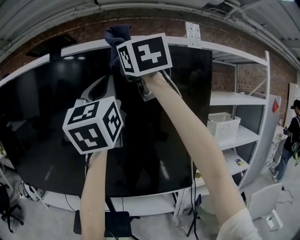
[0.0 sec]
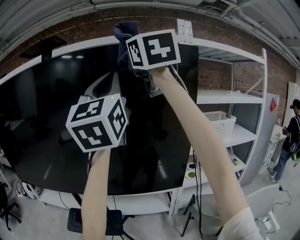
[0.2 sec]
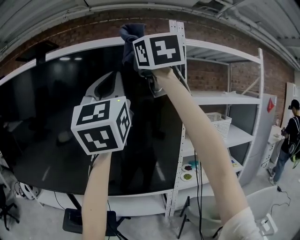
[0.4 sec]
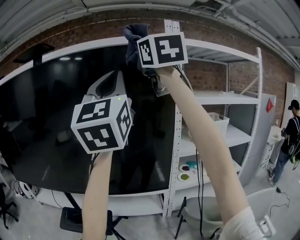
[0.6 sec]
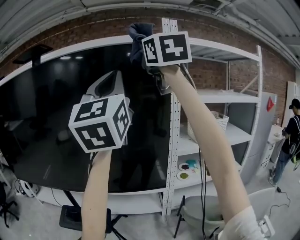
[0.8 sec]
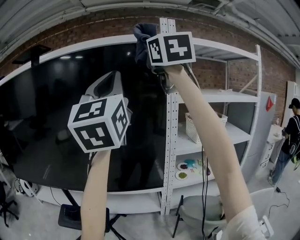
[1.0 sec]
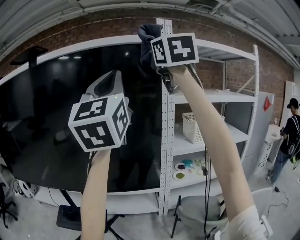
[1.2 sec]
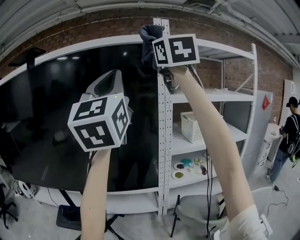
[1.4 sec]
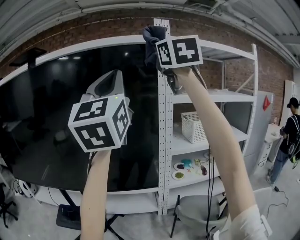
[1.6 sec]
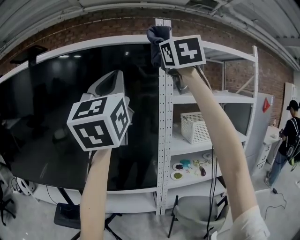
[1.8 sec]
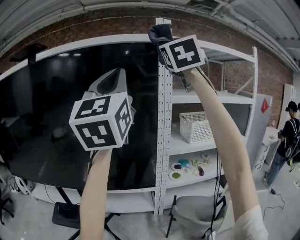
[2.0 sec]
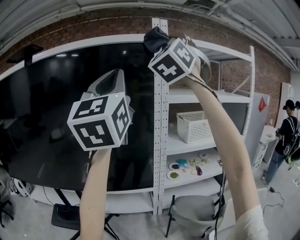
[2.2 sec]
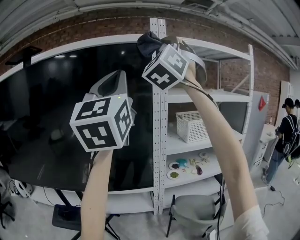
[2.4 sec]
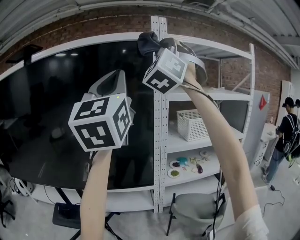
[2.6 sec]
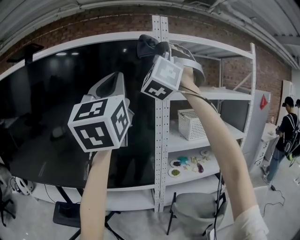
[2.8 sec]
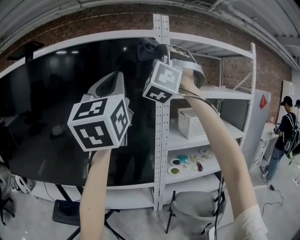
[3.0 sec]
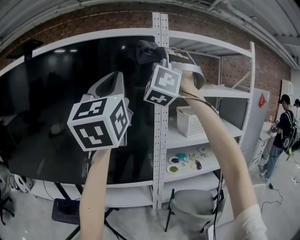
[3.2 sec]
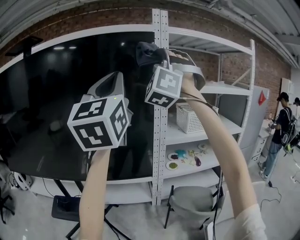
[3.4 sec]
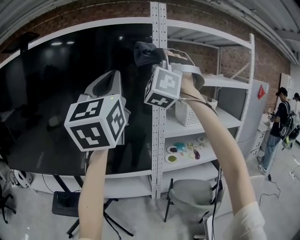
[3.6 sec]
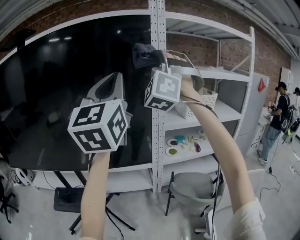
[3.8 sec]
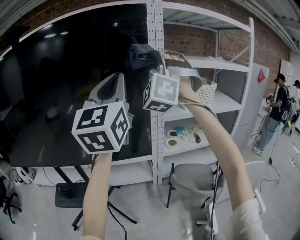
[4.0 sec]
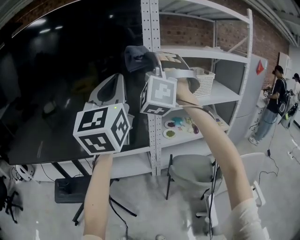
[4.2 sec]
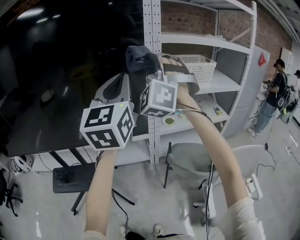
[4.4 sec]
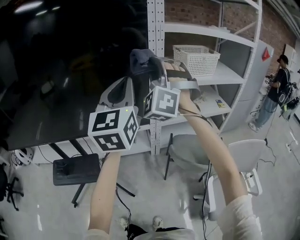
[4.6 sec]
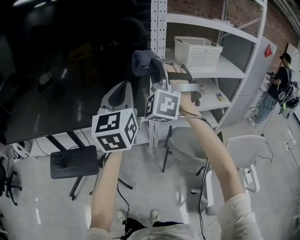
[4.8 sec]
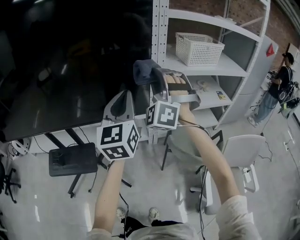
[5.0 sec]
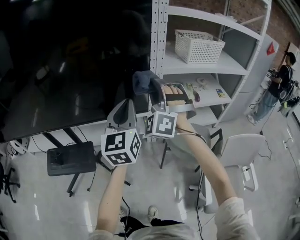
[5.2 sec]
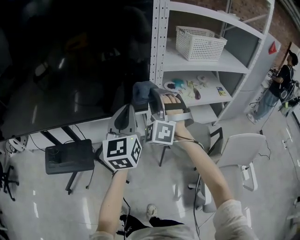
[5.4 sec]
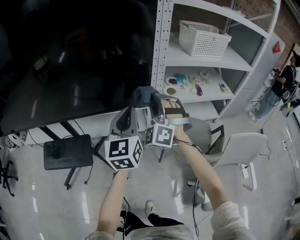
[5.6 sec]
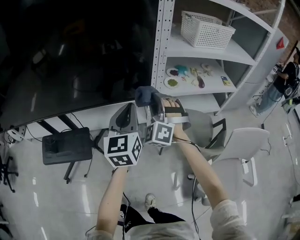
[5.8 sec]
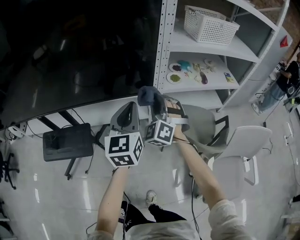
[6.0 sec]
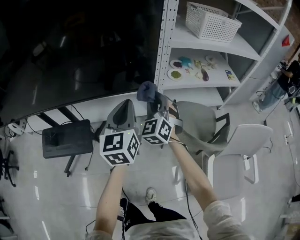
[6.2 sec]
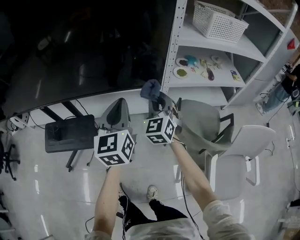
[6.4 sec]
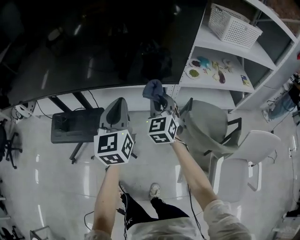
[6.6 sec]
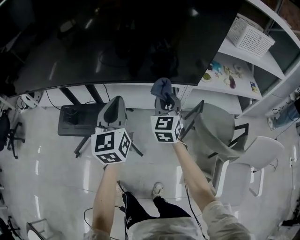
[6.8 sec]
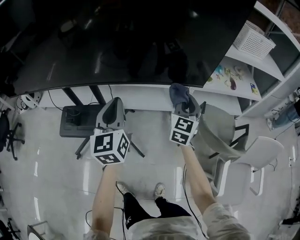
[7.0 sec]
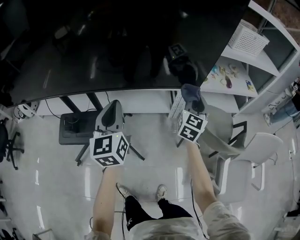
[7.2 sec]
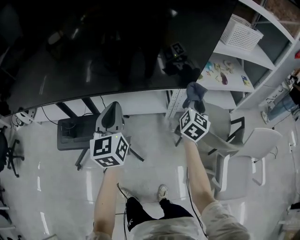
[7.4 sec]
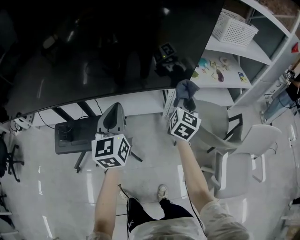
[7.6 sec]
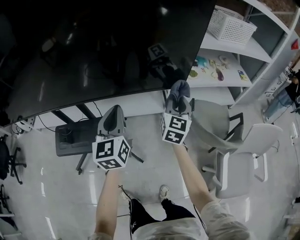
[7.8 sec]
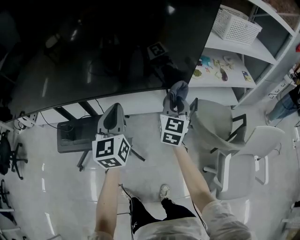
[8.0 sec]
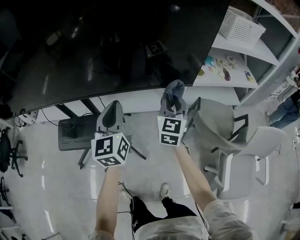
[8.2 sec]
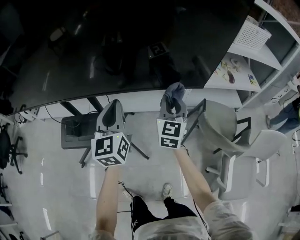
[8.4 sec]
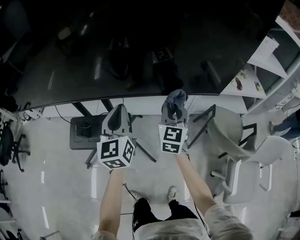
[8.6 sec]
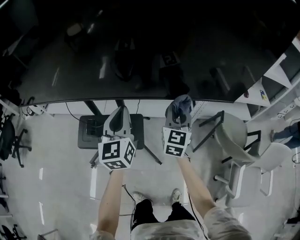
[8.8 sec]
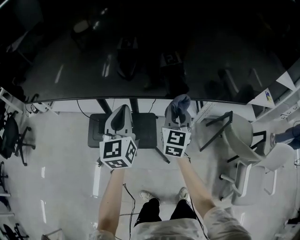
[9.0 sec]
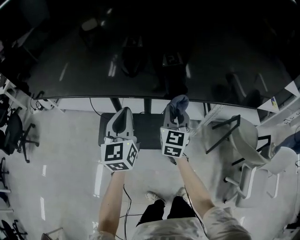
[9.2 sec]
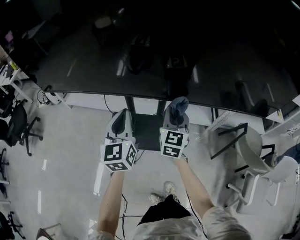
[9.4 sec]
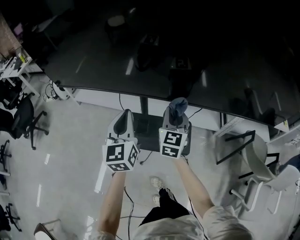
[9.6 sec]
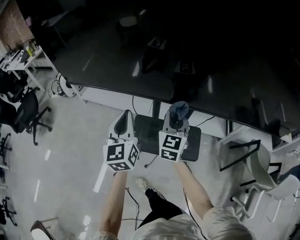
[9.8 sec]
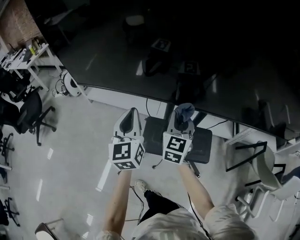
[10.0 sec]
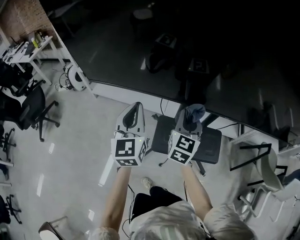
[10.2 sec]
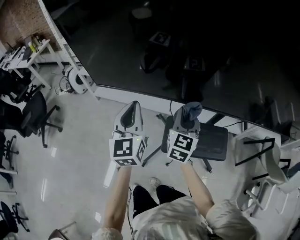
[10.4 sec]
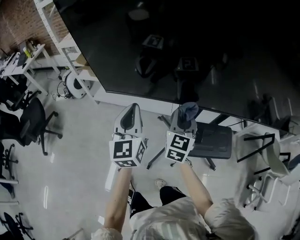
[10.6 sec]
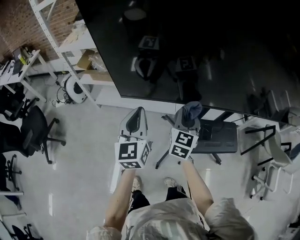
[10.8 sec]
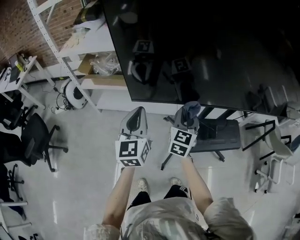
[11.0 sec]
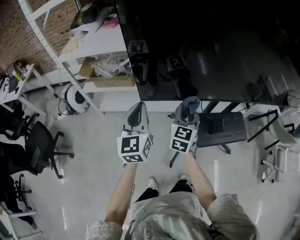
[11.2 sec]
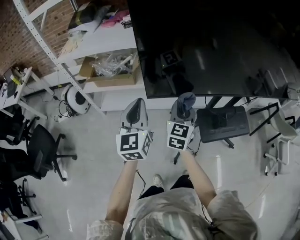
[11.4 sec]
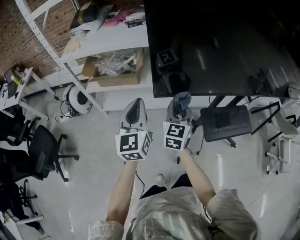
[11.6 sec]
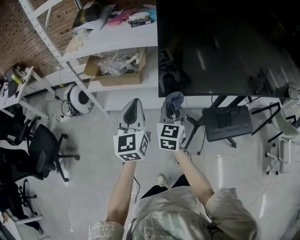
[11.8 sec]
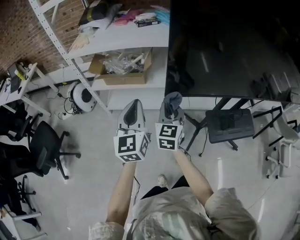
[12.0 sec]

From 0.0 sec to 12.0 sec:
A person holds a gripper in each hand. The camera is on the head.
From 0.0 sec to 1.6 sec: Both grippers move to the right, approximately 25 cm.
From 1.6 sec to 3.0 sec: The right gripper rolls counterclockwise, seen from behind, by roughly 70 degrees.
From 3.0 sec to 4.4 sec: The two grippers go roughly 25 cm downward.
From 4.4 sec to 6.0 sec: Both grippers move downward, about 35 cm. The right gripper swivels roughly 30 degrees, while the left gripper turns by some 20 degrees.
From 6.0 sec to 7.6 sec: The right gripper moves roughly 15 cm to the left and comes back, and twists roughly 70 degrees clockwise, seen from behind. Meanwhile the left gripper heads to the left, covering about 20 cm.
From 7.6 sec to 9.0 sec: Both grippers move to the left, roughly 35 cm. The right gripper turns by roughly 30 degrees.
From 9.0 sec to 10.4 sec: The two grippers travel together, to the left, some 50 cm.
From 10.4 sec to 12.0 sec: Both grippers travel together to the left, roughly 35 cm.

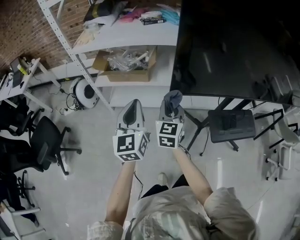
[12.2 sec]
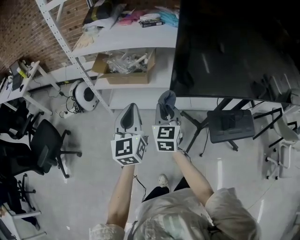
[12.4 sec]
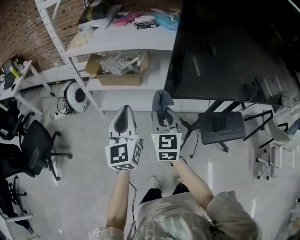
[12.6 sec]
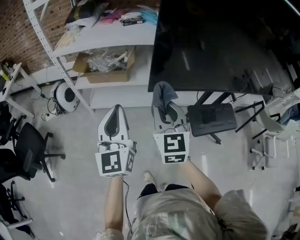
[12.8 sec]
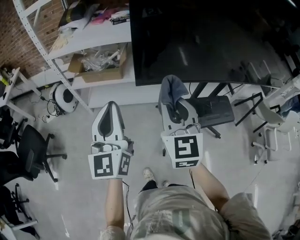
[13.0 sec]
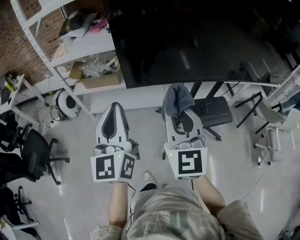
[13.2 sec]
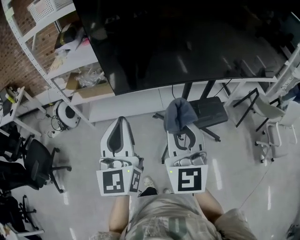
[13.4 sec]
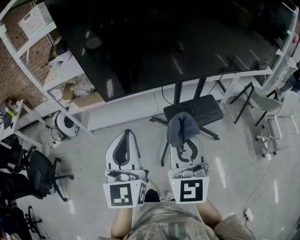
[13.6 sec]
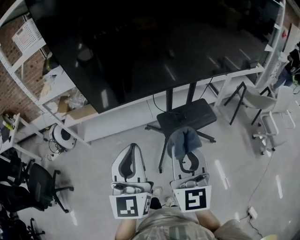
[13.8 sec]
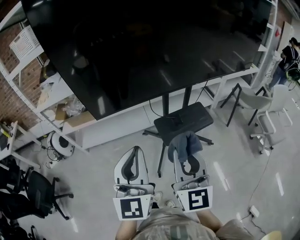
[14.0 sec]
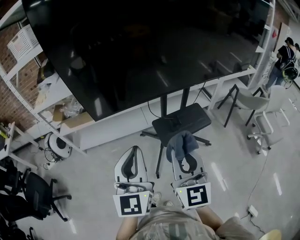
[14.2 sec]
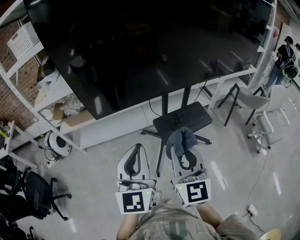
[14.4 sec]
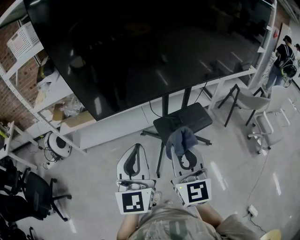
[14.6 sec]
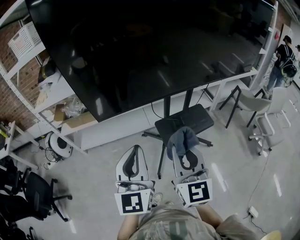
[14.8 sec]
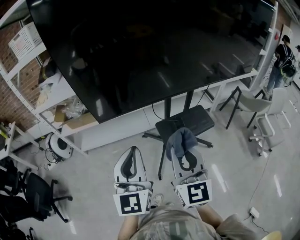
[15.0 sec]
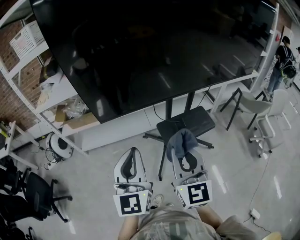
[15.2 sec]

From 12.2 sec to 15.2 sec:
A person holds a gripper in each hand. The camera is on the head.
From 12.2 sec to 13.8 sec: The right gripper goes approximately 50 cm backward, to the right and upward, and rotates some 20 degrees. The left gripper heads to the right, backward and upward, covering roughly 40 cm, and swivels roughly 20 degrees.
From 13.8 sec to 15.2 sec: The left gripper moves about 5 cm.

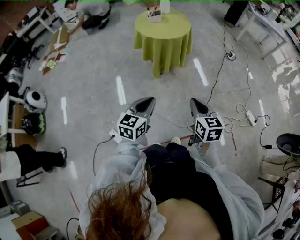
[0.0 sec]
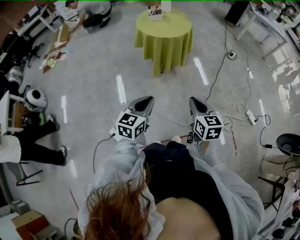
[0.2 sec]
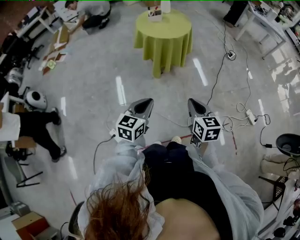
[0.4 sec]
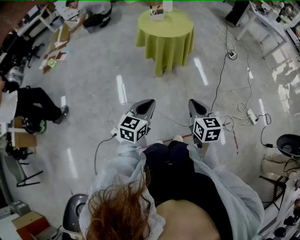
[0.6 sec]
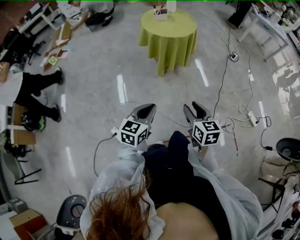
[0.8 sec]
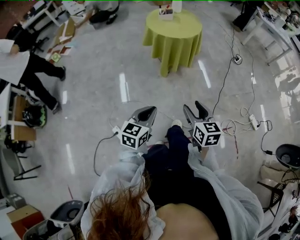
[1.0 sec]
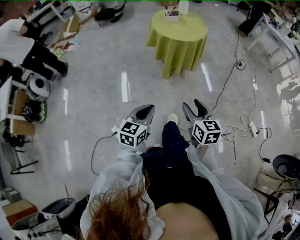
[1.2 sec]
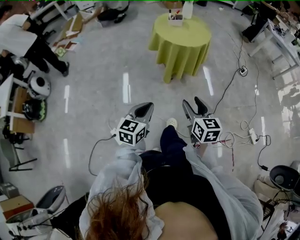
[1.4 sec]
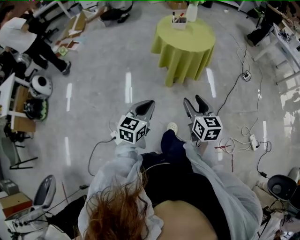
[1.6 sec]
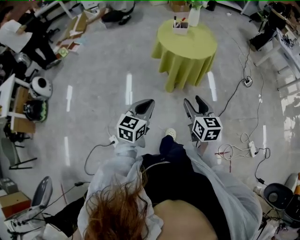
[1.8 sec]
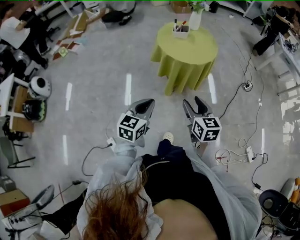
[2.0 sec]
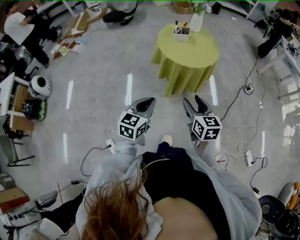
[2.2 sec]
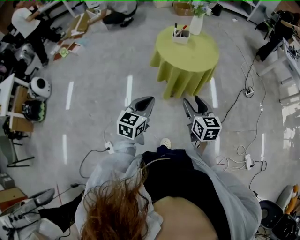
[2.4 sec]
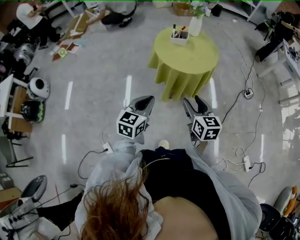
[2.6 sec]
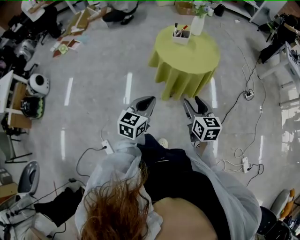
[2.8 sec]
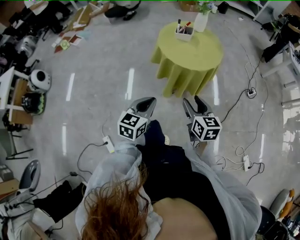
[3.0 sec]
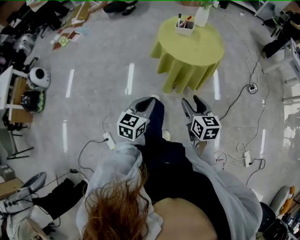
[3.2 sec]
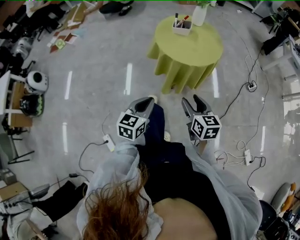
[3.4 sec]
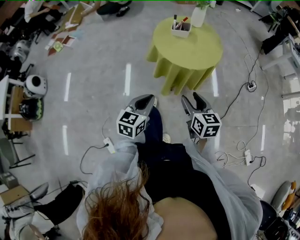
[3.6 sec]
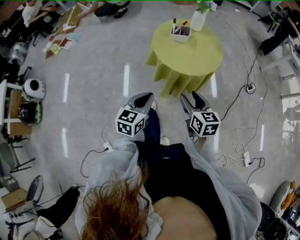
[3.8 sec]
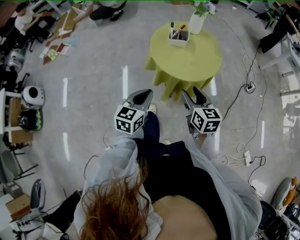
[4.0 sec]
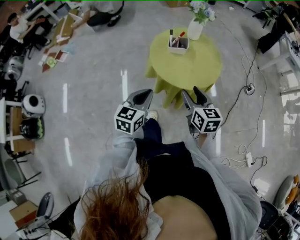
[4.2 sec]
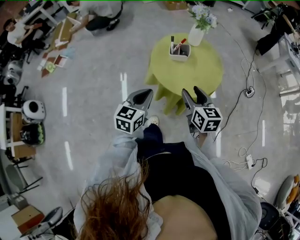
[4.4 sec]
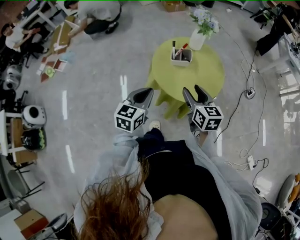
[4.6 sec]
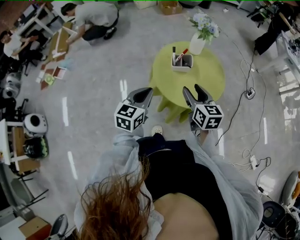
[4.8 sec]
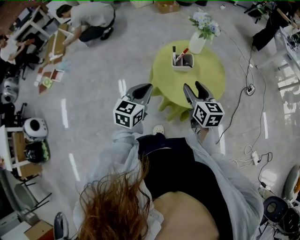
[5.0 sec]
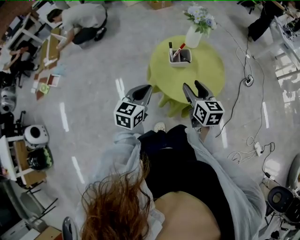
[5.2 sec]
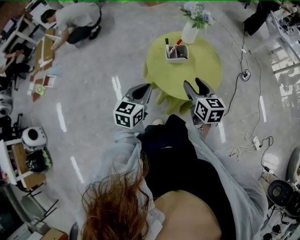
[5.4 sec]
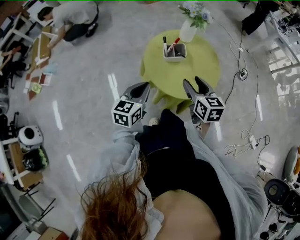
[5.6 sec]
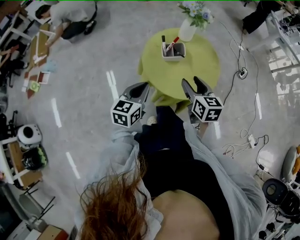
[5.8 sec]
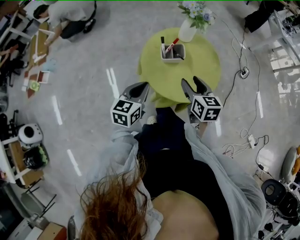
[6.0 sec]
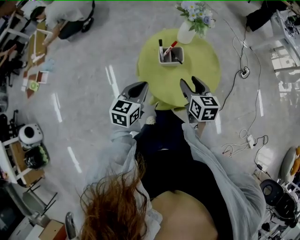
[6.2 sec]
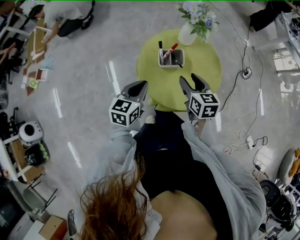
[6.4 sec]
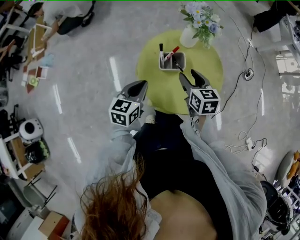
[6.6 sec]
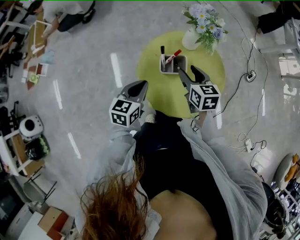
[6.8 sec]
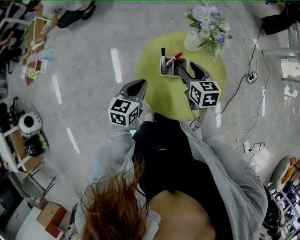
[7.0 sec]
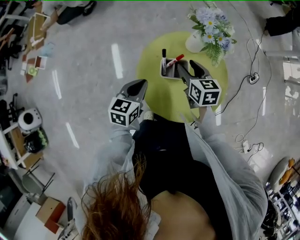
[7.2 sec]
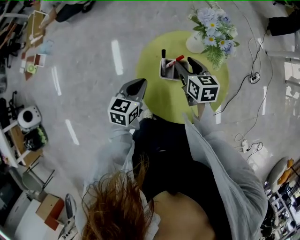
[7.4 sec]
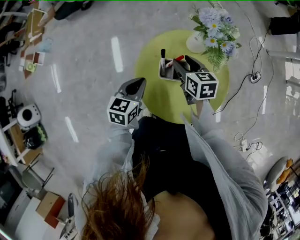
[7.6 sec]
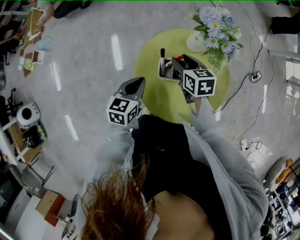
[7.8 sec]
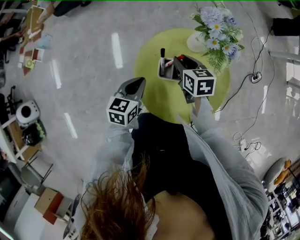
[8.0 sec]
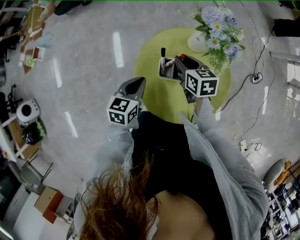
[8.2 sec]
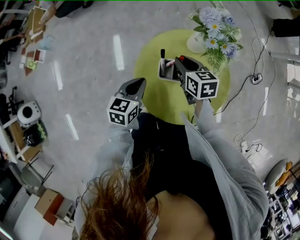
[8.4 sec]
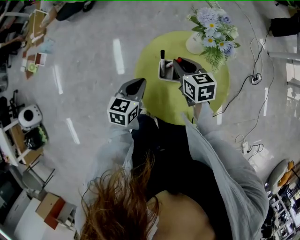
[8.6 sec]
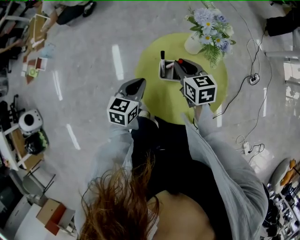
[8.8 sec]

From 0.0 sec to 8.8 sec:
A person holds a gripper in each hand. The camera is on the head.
From 0.0 sec to 1.4 sec: The left gripper goes roughly 5 cm to the left. The right gripper goes roughly 10 cm to the left and forward, and opens.
From 1.4 sec to 3.0 sec: Both grippers move forward, about 20 cm.
From 3.0 sec to 4.4 sec: Both grippers move forward, roughly 25 cm.
From 4.4 sec to 5.8 sec: Both grippers move forward, approximately 10 cm.
From 5.8 sec to 7.4 sec: The right gripper travels forward by roughly 20 cm, while the left gripper shifts roughly 15 cm forward.
From 7.4 sec to 8.8 sec: The right gripper closes up.
